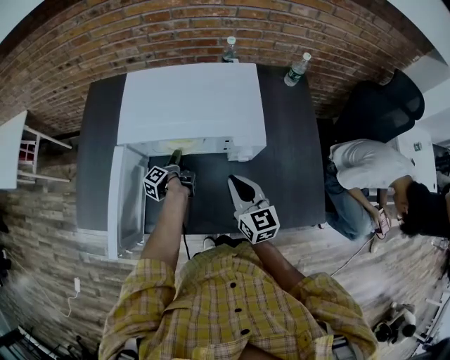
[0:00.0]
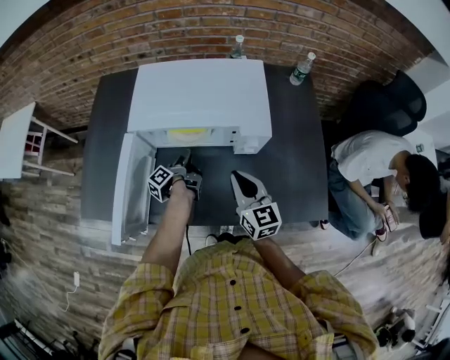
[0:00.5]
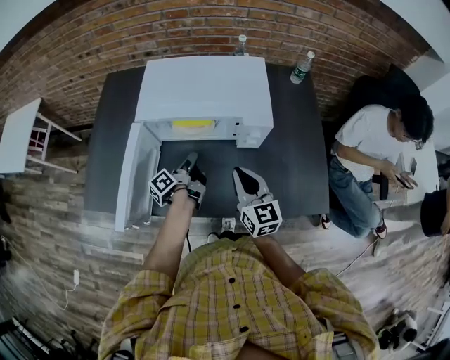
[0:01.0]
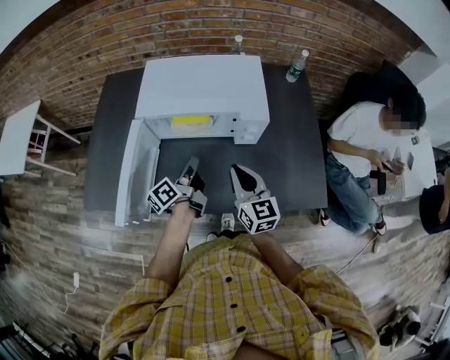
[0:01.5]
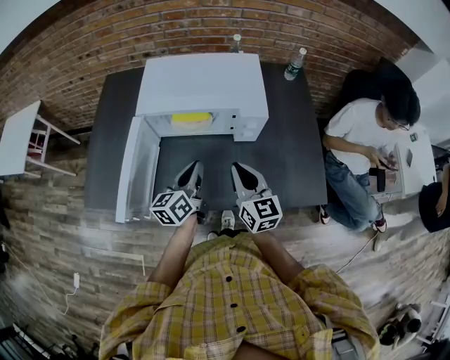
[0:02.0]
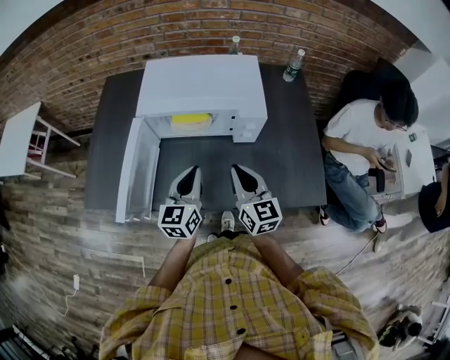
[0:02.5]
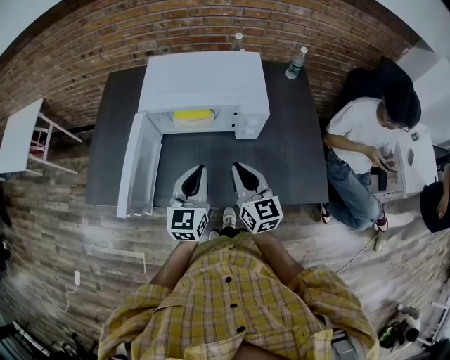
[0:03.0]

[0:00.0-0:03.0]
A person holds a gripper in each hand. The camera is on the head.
0:00.0 to 0:01.5: The right gripper ends up roughly 10 cm from where it was.

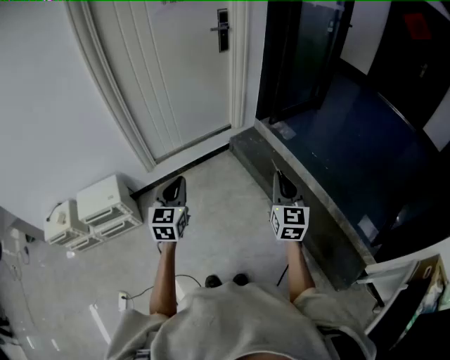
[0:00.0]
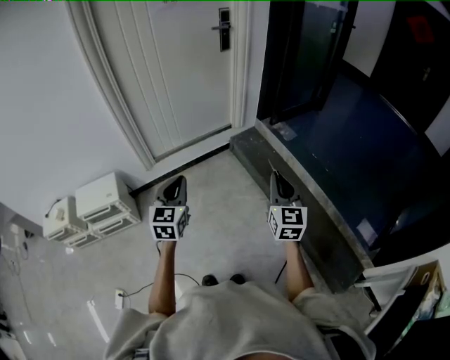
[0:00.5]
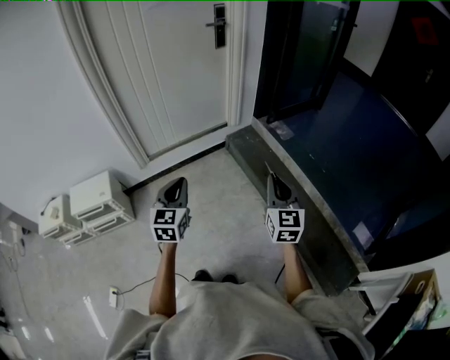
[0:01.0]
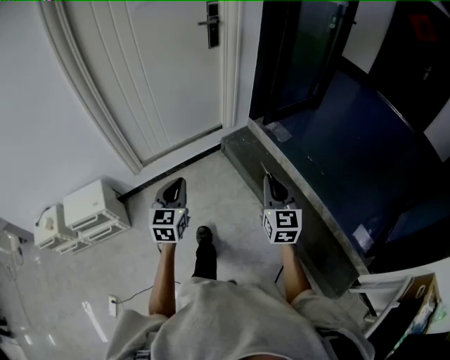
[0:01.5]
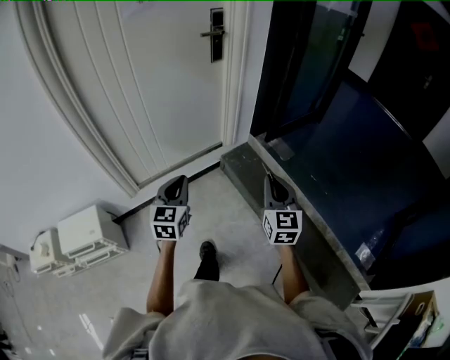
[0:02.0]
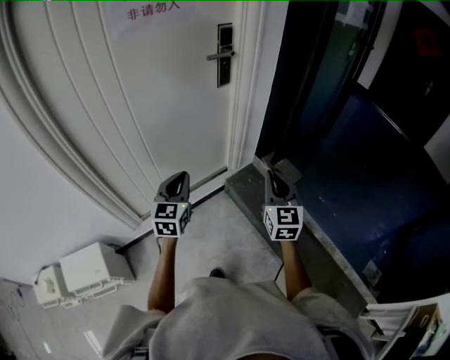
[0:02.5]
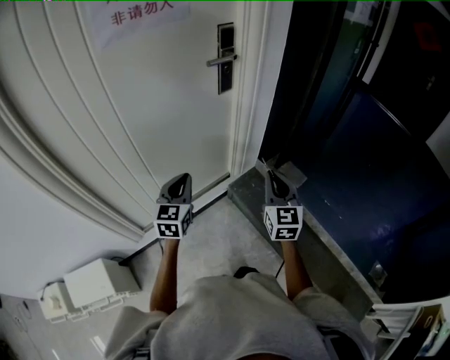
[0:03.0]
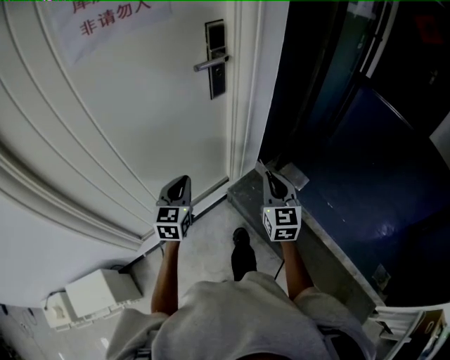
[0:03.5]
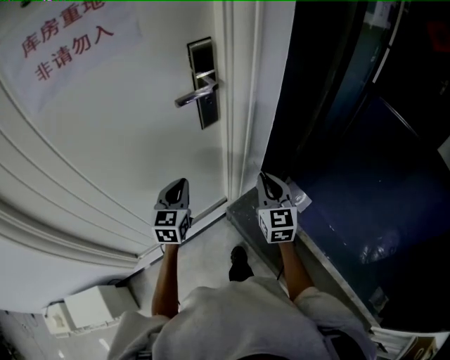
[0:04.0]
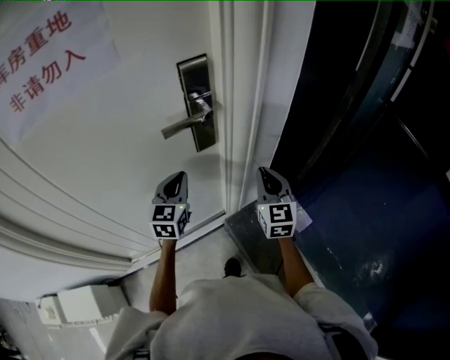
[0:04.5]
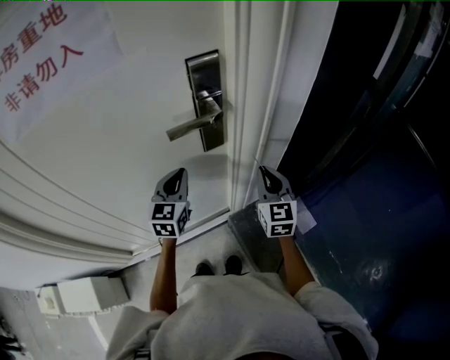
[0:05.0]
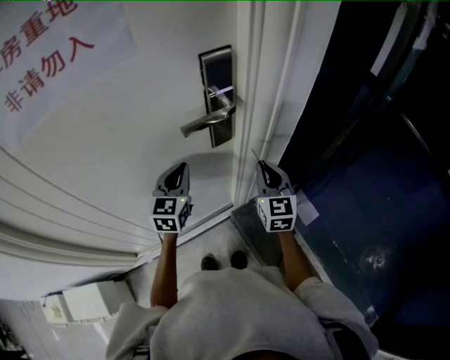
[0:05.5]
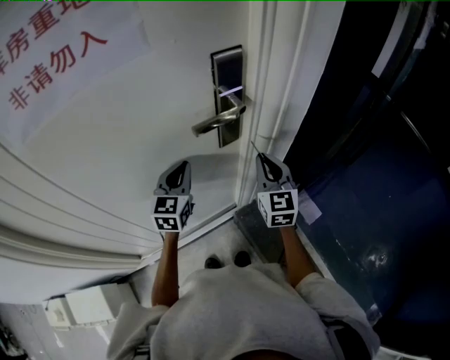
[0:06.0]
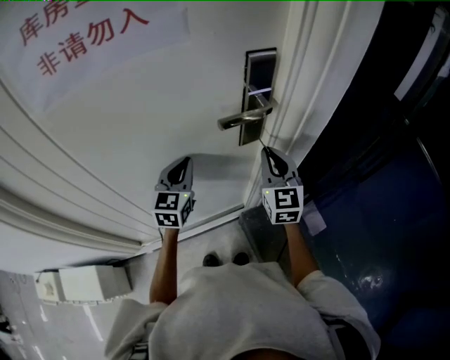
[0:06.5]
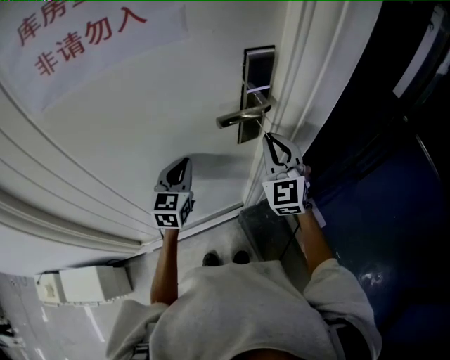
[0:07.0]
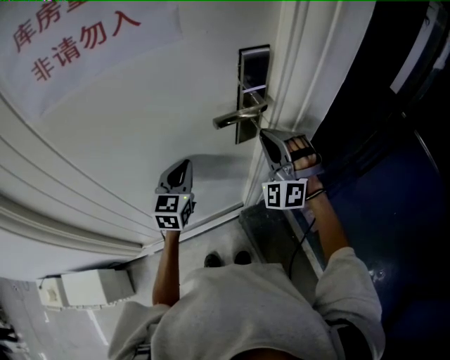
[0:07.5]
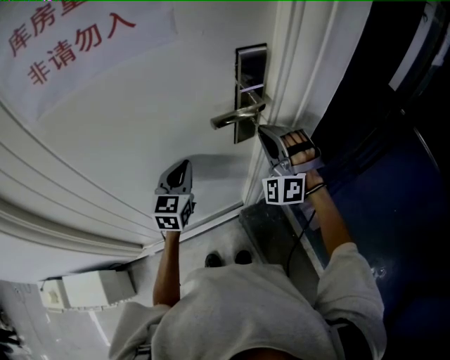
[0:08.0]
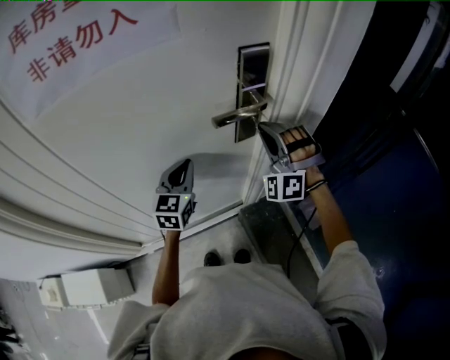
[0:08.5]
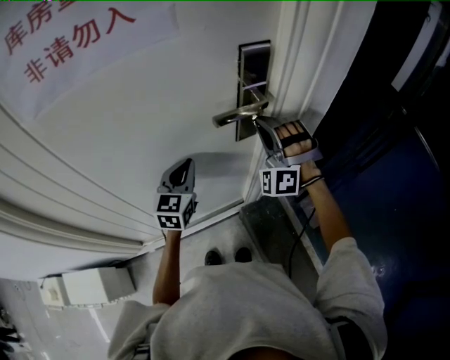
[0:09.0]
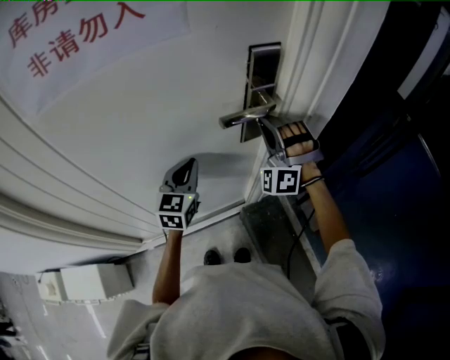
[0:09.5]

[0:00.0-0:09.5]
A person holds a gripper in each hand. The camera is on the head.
0:00.0 to 0:02.0: Both grippers travel together forward, approximately 30 cm.
0:02.0 to 0:04.0: The two grippers travel together, forward, about 50 cm.
0:04.0 to 0:05.5: The two grippers go roughly 15 cm forward.
0:05.5 to 0:07.5: The right gripper shifts some 10 cm upward and to the left, and rotates around the line of its fingers by approximately 70 degrees, counterclockwise from behind; the left gripper heads to the left, covering approximately 5 cm.
0:07.5 to 0:09.5: The grippers move only a little.

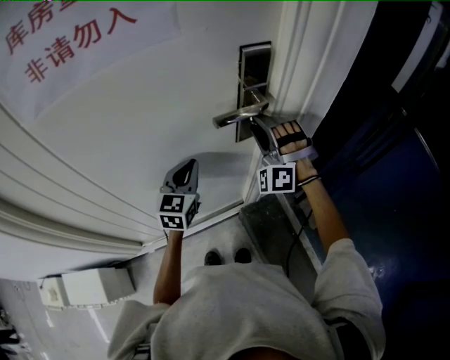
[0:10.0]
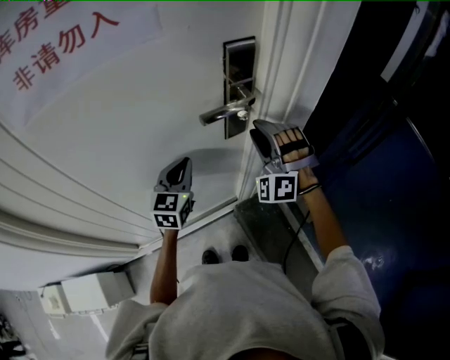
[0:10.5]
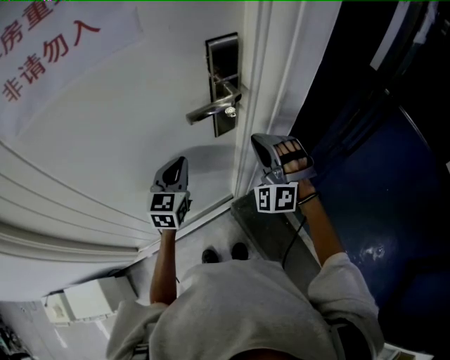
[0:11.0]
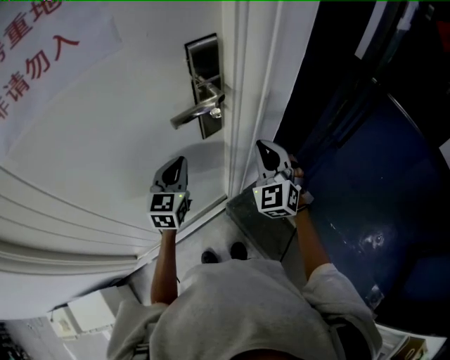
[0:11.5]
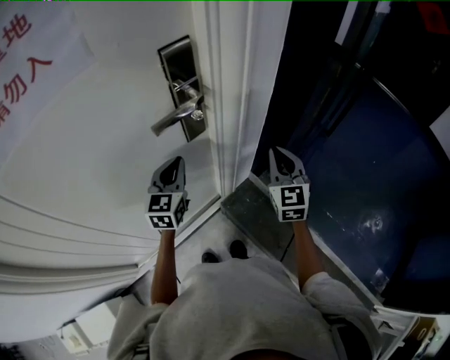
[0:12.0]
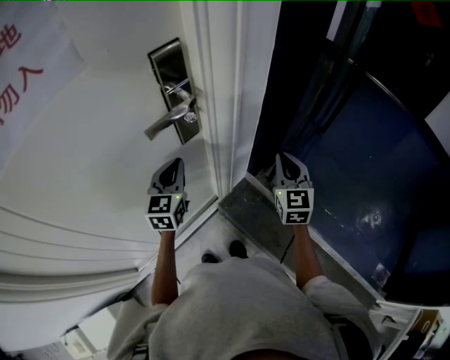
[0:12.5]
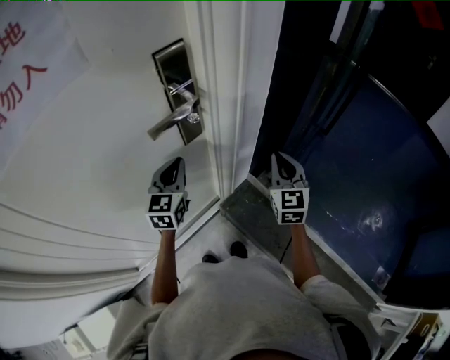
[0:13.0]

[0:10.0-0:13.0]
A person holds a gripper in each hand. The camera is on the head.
0:10.0 to 0:11.5: The right gripper is displaced to the right and backward by about 15 cm, twists about 50 degrees clockwise, seen from behind, and closes up. Meanwhile the left gripper goes roughly 5 cm to the right.
0:11.5 to 0:13.0: The right gripper is displaced to the right by about 10 cm, and rotates roughly 30 degrees.

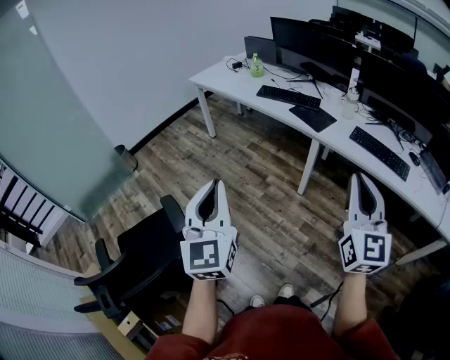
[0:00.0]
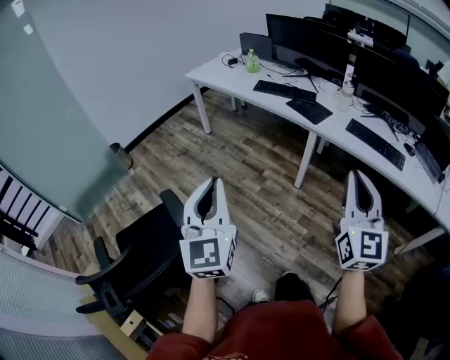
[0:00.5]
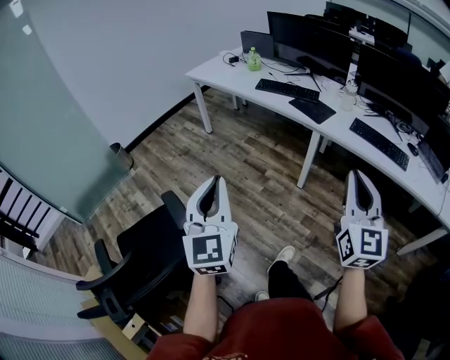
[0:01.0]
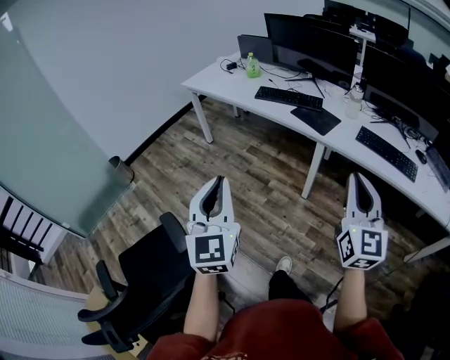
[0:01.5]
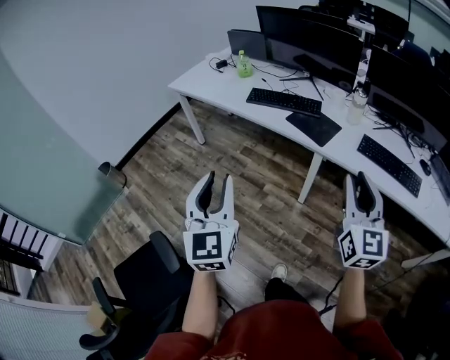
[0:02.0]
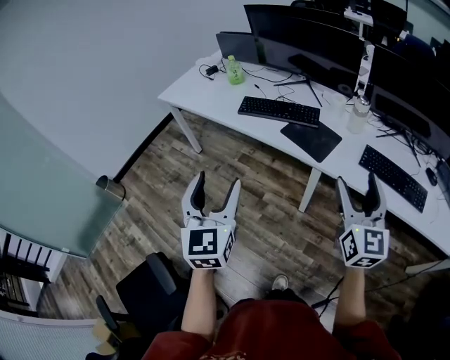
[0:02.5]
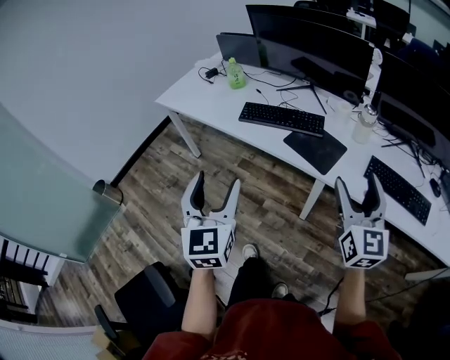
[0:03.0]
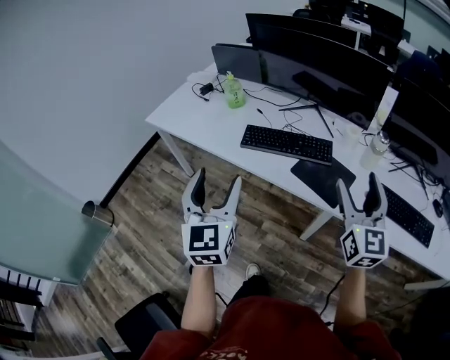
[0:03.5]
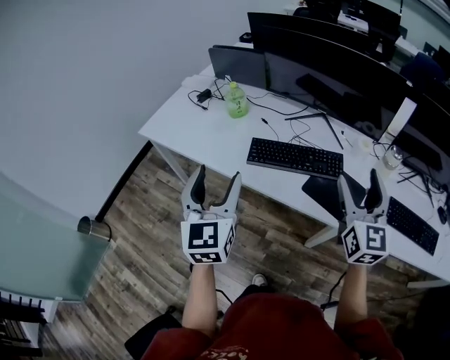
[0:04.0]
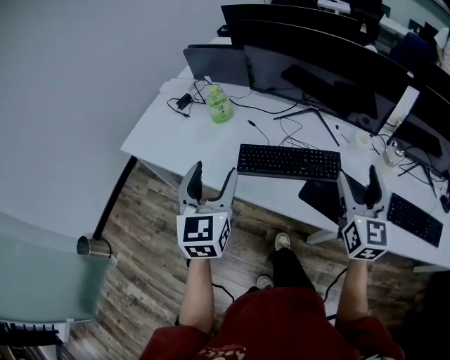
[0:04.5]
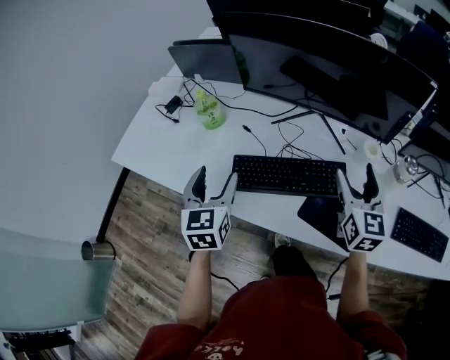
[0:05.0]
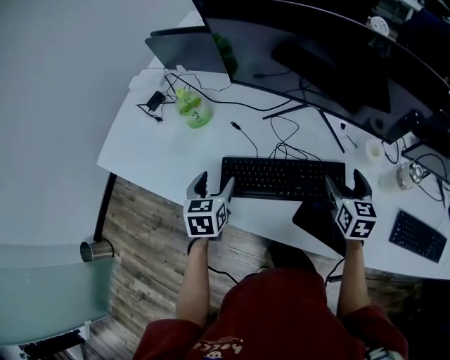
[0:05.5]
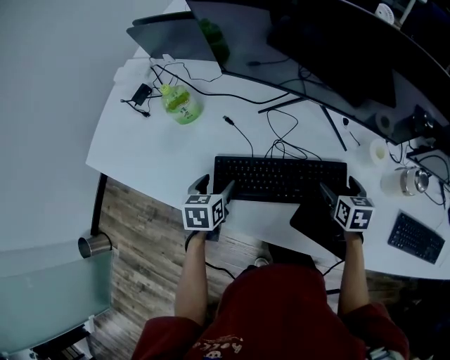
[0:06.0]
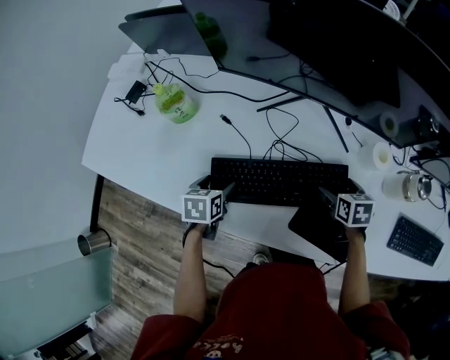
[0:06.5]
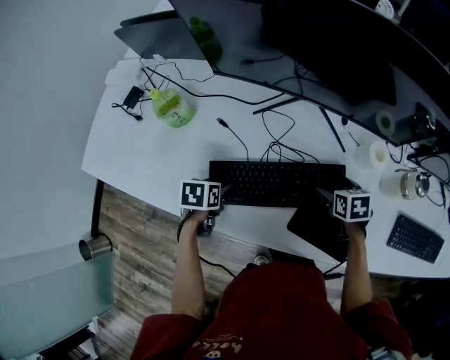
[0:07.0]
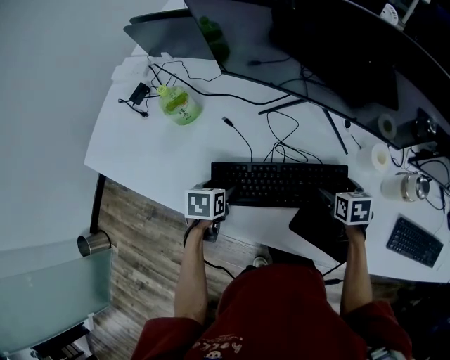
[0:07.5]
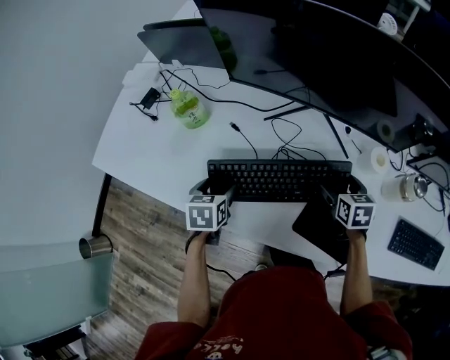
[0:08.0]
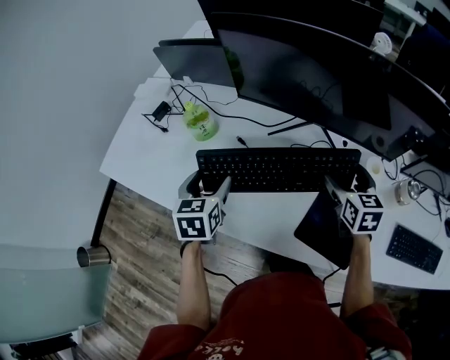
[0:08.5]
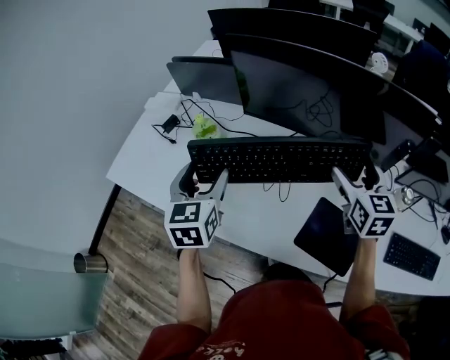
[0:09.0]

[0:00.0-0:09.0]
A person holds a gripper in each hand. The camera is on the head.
0:00.0 to 0:02.0: Both grippers travel together forward, about 25 cm.
0:02.0 to 0:04.5: The pair of grippers is taken forward, about 60 cm. The right gripper opens. The left gripper opens its fingers.
0:04.5 to 0:07.0: The grippers both shift downward and forward by about 40 cm. The left gripper points its fingers approximately 60 degrees further downward; the right gripper tips its fingers downward by roughly 60 degrees.
0:07.0 to 0:09.0: The two grippers go roughly 30 cm upward. The left gripper points its fingers some 50 degrees further upward, while the right gripper angles its fingers upward, by approximately 40 degrees.

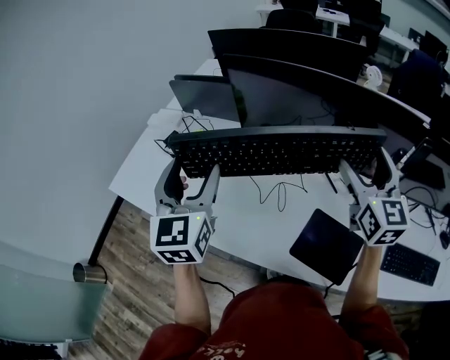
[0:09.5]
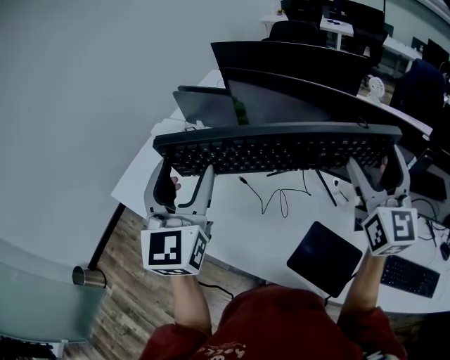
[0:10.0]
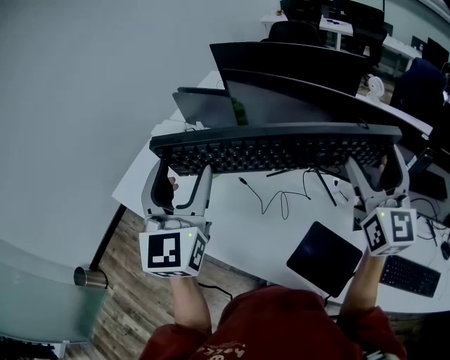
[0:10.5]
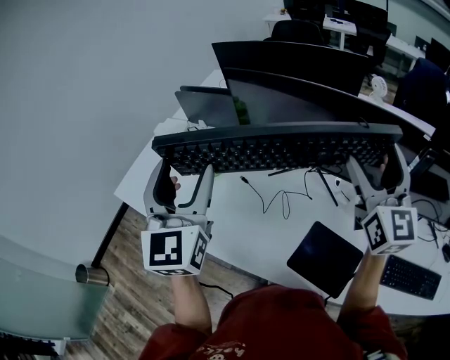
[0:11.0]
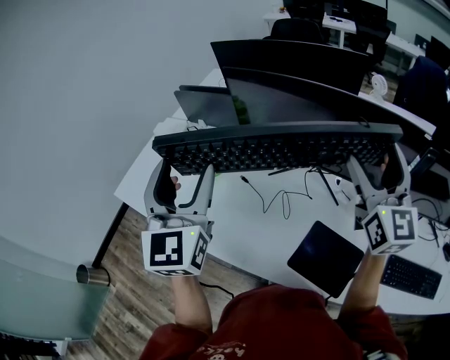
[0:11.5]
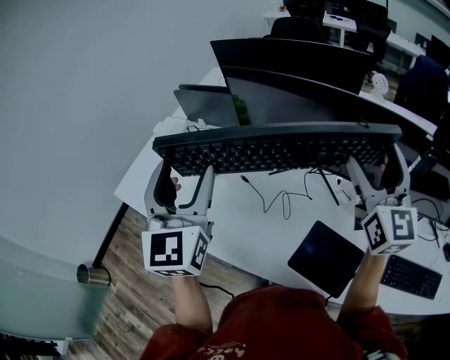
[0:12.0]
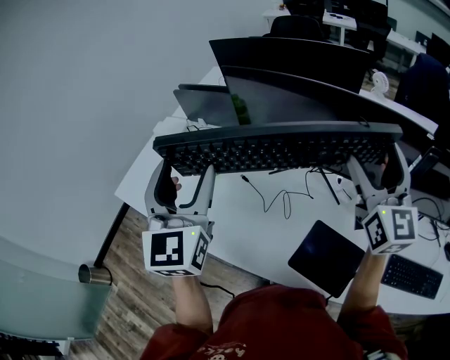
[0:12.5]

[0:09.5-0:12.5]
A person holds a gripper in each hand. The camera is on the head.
0:09.5 to 0:11.0: The two grippers go approximately 5 cm upward.
0:11.0 to 0:12.5: The two grippers keep their place.
